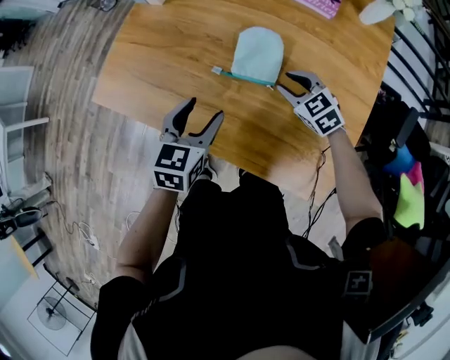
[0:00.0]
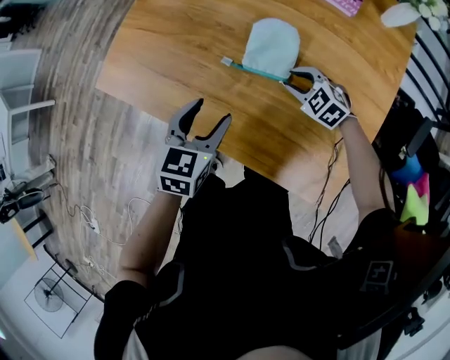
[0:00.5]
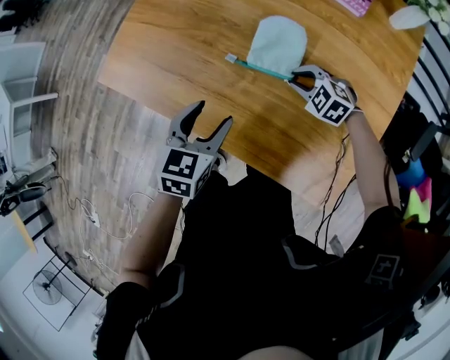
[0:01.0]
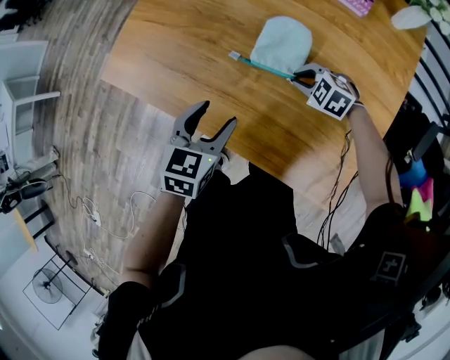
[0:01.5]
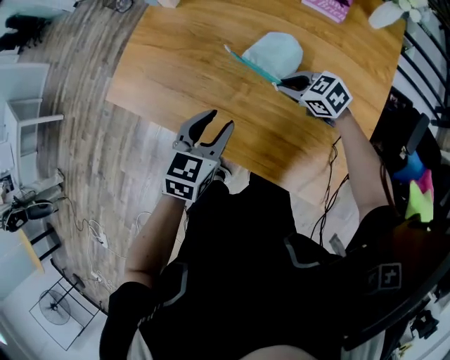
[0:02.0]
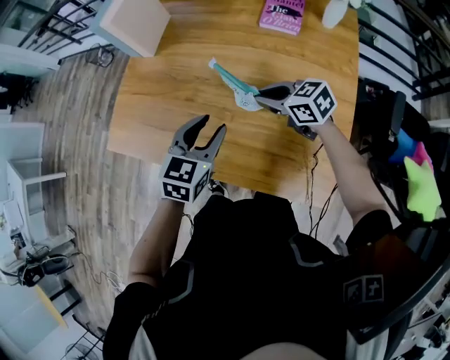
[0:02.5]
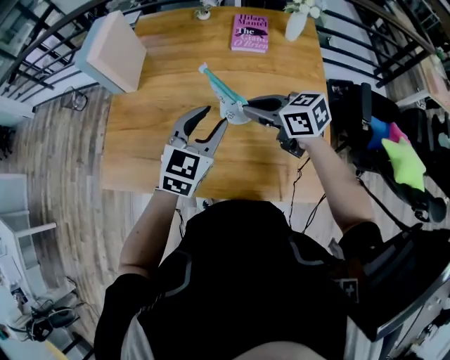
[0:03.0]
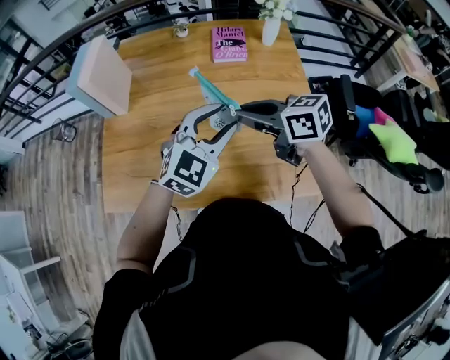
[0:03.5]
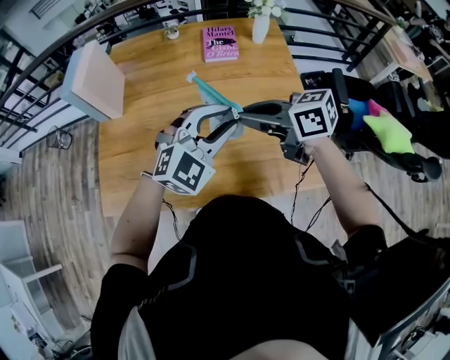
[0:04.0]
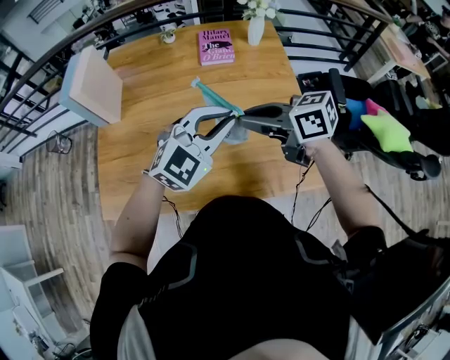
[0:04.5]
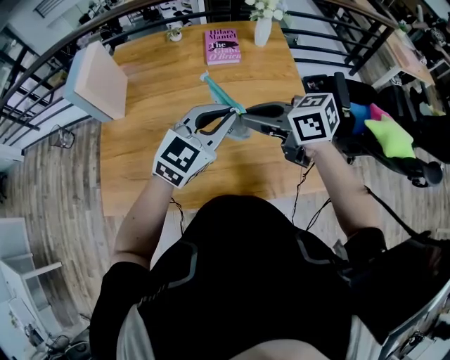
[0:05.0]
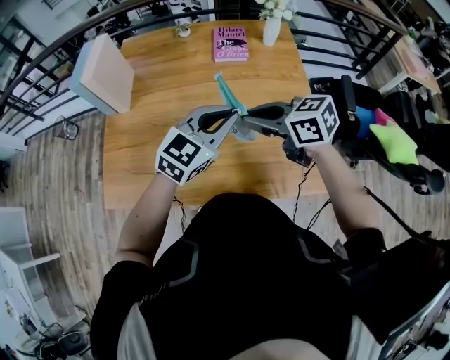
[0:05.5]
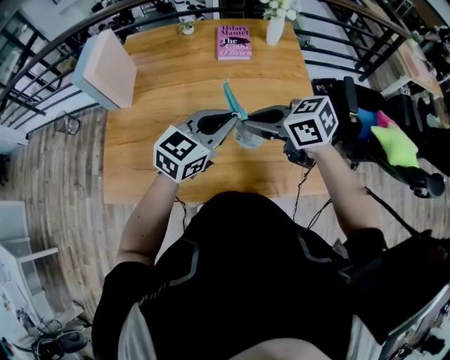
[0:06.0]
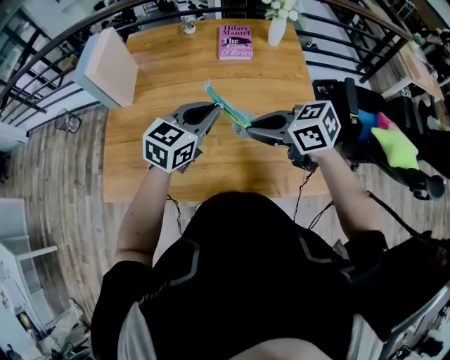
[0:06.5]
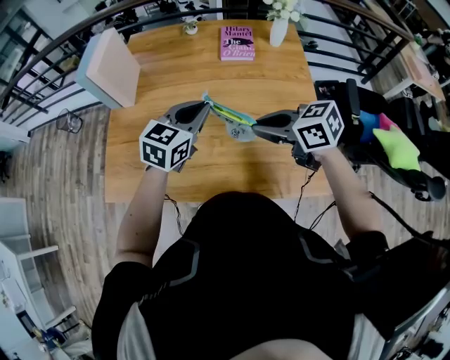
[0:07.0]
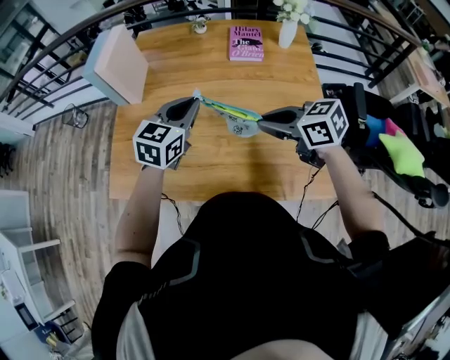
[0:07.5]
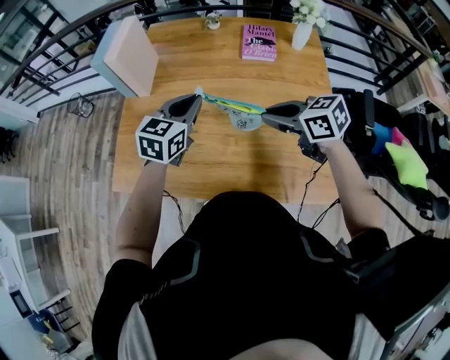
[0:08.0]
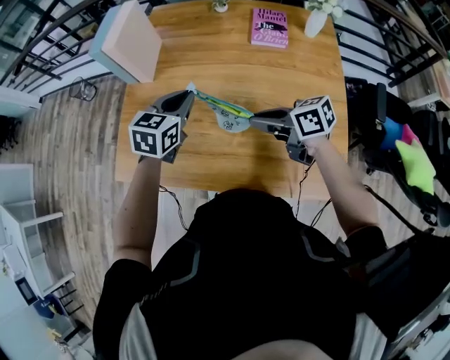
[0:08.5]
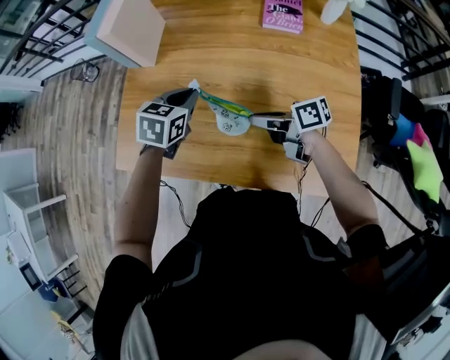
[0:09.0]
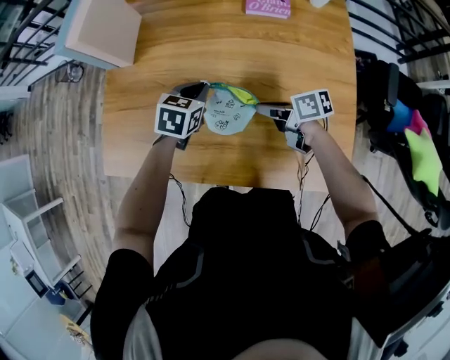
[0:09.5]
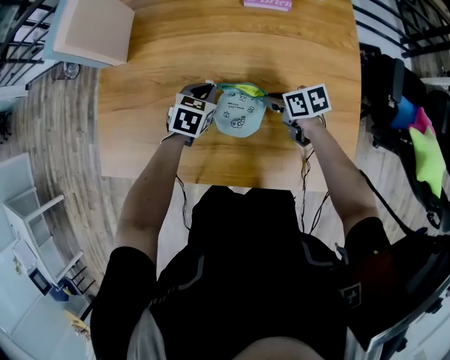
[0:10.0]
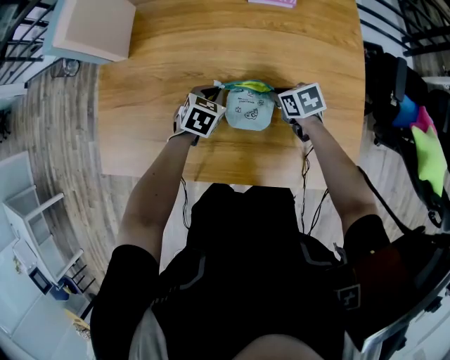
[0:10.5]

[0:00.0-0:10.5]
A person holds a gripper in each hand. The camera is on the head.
0:00.0 to 0:02.0: The right gripper turns by roughly 20 degrees, while the left gripper closes.
0:02.0 to 0:04.0: The right gripper goes about 25 cm upward, and swivels roughly 40 degrees, while the left gripper moves upward, roughly 15 cm, and swivels about 80 degrees.
0:04.0 to 0:06.5: The left gripper goes about 5 cm forward, and twists roughly 40 degrees counterclockwise, seen from behind.
0:06.5 to 0:08.5: The right gripper shifts some 10 cm downward and forward, while the left gripper is displaced to the left and forward by some 15 cm, and changes its angle by about 30 degrees.
0:08.5 to 0:10.5: The right gripper goes approximately 25 cm downward and to the right, and tips its fingers downward by approximately 30 degrees. The left gripper heads downward, covering about 25 cm, and rotates approximately 30 degrees.

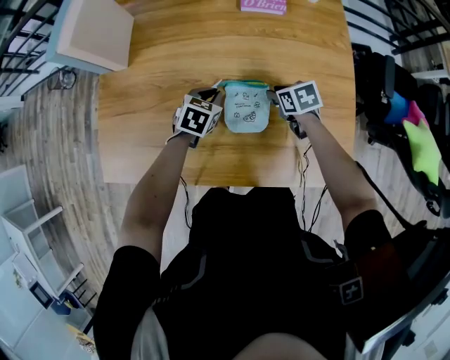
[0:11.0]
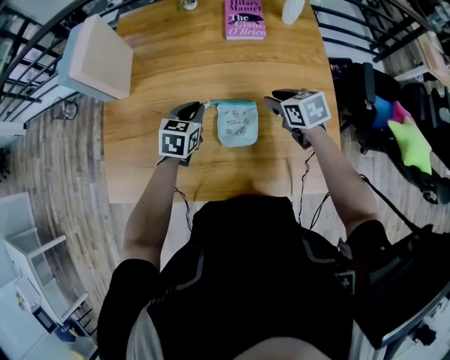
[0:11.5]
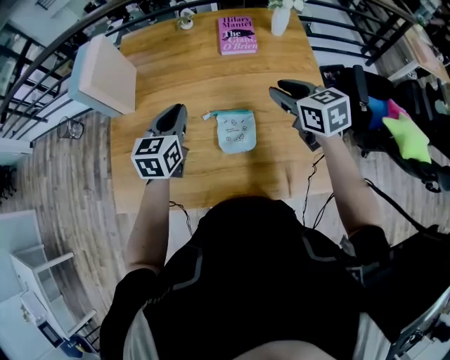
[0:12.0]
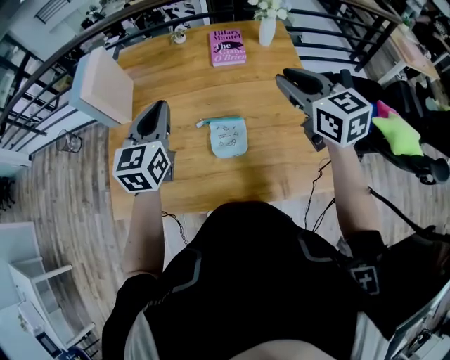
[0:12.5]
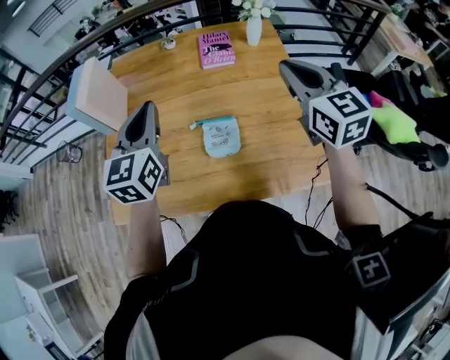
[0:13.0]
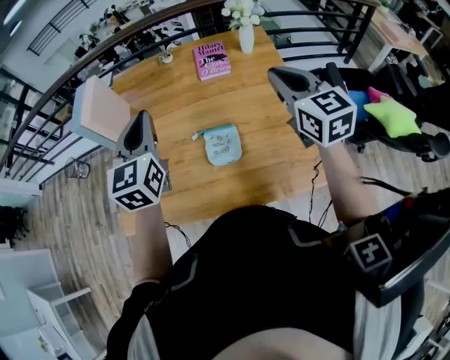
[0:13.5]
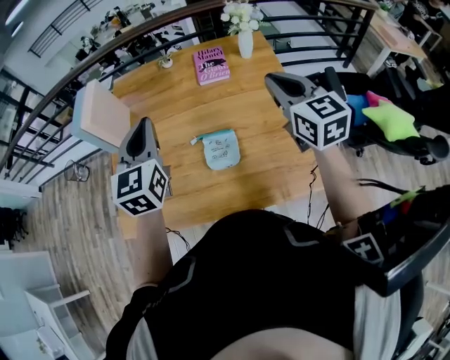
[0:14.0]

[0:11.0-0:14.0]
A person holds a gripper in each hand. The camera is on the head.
0:11.0 to 0:12.5: Both grippers travel together upward, about 35 cm. The left gripper tips its fingers upward by some 40 degrees; the right gripper points its fingers some 40 degrees further upward.
0:12.5 to 0:14.0: The left gripper moves upward, approximately 5 cm.

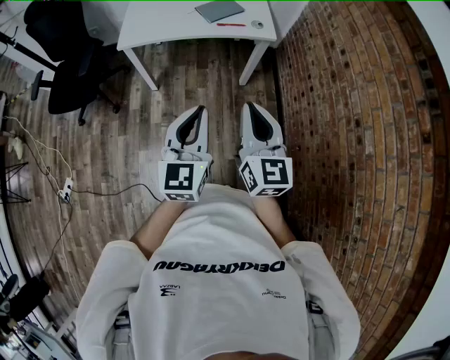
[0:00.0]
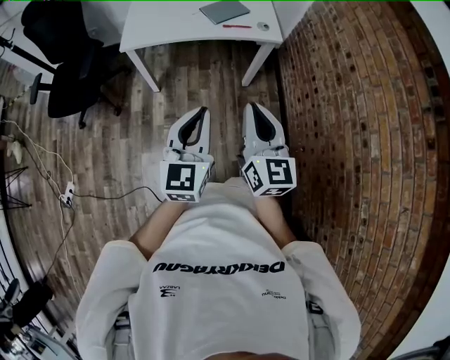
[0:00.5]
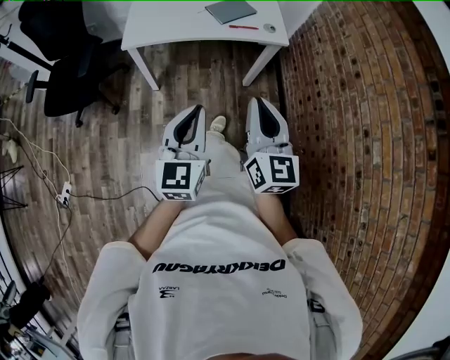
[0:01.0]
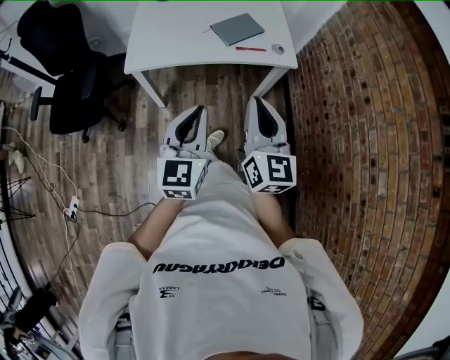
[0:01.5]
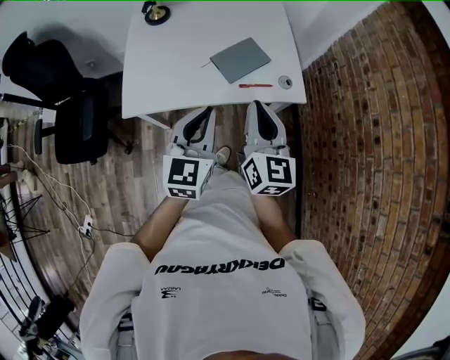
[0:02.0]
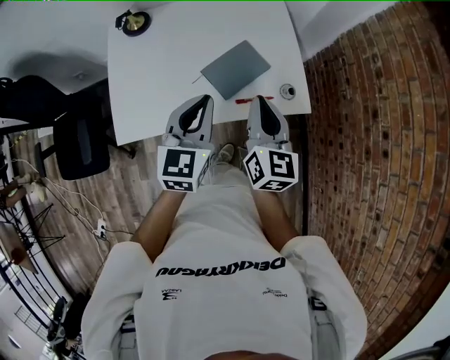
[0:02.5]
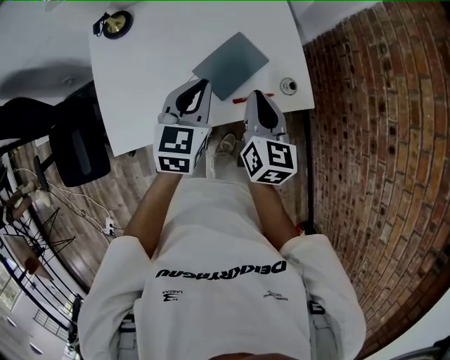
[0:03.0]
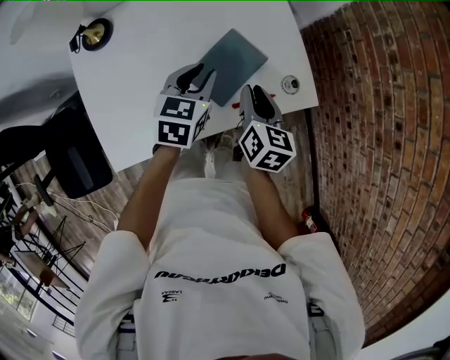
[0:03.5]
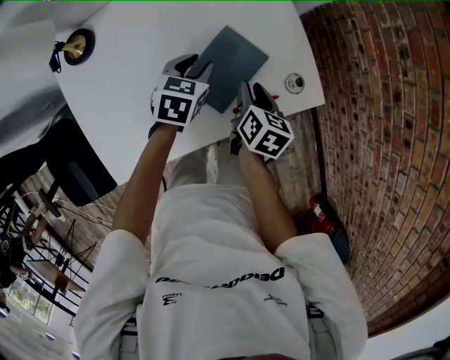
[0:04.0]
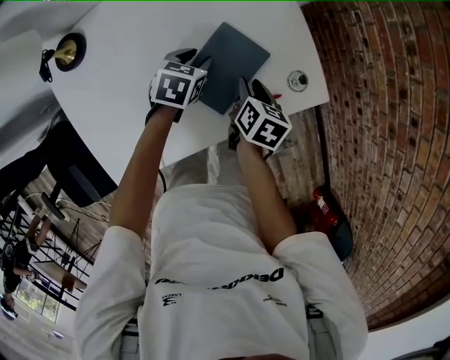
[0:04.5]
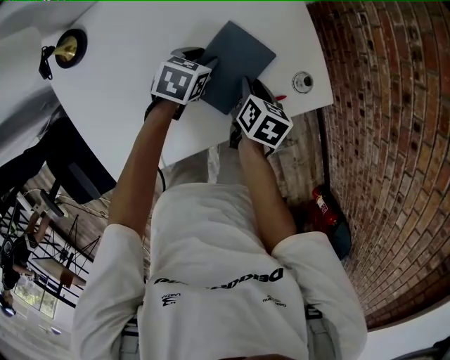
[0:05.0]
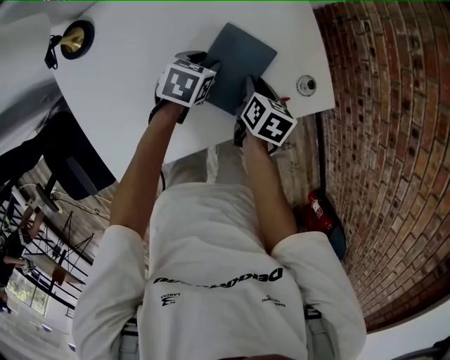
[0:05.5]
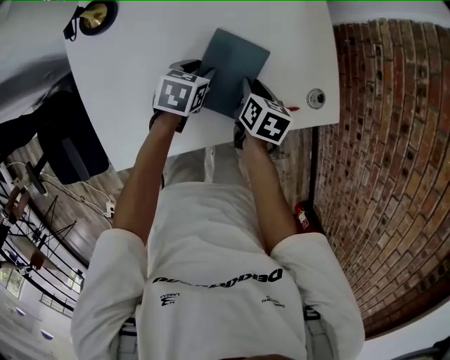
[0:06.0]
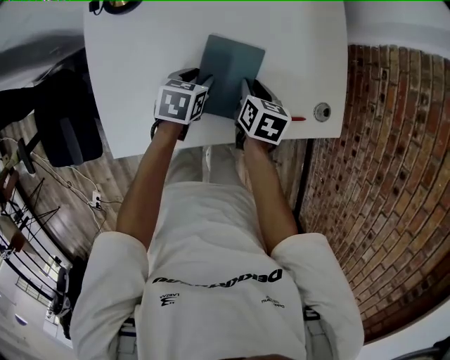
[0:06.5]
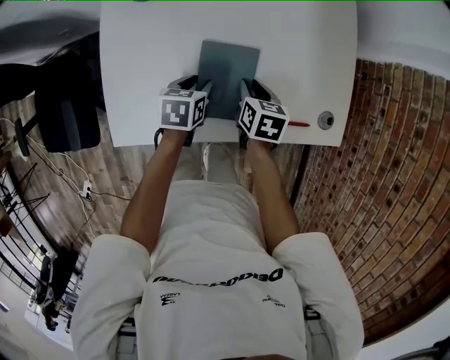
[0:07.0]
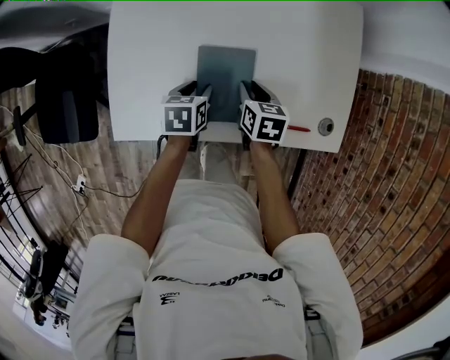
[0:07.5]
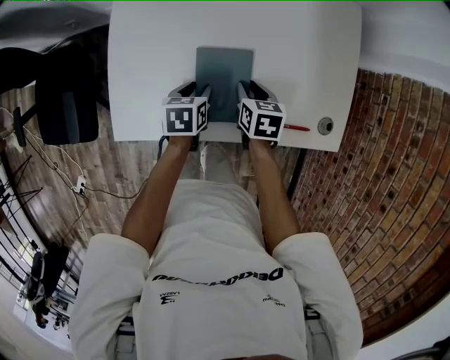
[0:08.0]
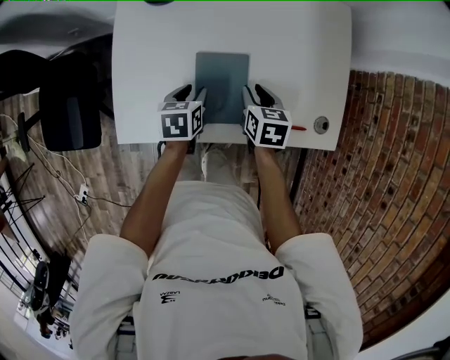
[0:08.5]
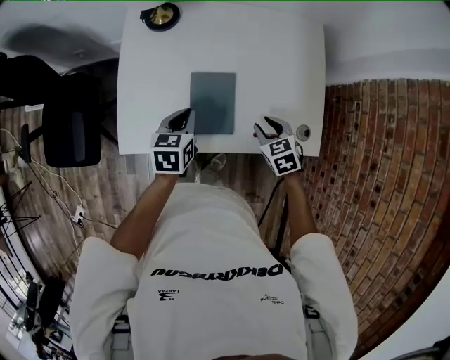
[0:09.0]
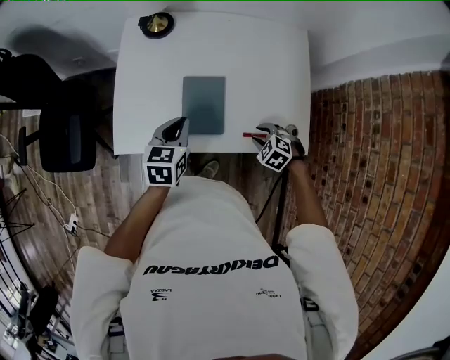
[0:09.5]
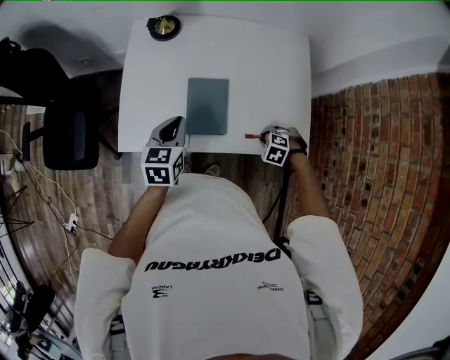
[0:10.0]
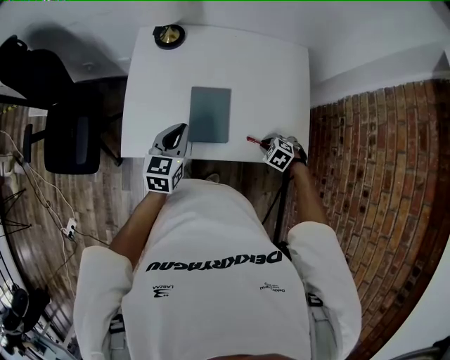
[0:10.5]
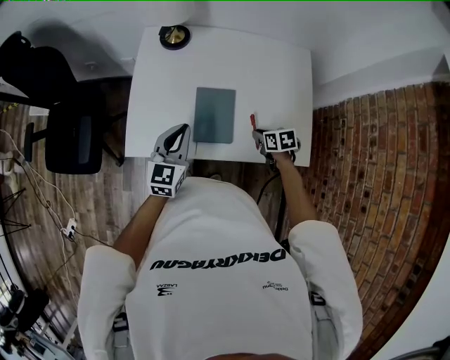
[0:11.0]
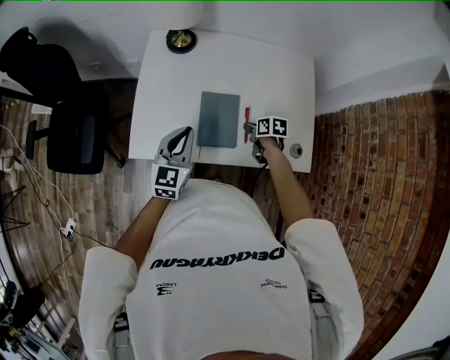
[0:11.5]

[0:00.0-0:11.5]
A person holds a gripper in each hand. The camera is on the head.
0:00.0 to 0:02.0: The two grippers travel together, forward, roughly 40 cm.
0:02.0 to 0:04.0: The right gripper moves downward and forward, roughly 40 cm, points its fingers about 40 degrees further downward, and opens its fingers. The left gripper shifts approximately 50 cm forward and downward, points its fingers some 40 degrees further downward, and opens.
0:04.0 to 0:06.0: The left gripper shifts approximately 10 cm downward, to the left and backward. Meanwhile the right gripper travels to the left and downward by roughly 10 cm.
0:06.0 to 0:07.5: The right gripper moves approximately 10 cm, and swivels approximately 30 degrees. The left gripper ends up approximately 15 cm from where it was, and turns by some 30 degrees.
0:07.5 to 0:09.5: The right gripper shifts roughly 15 cm backward and to the right, and rolls counterclockwise, seen from behind, by some 70 degrees. Meanwhile the left gripper is displaced upward and backward by about 20 cm, rotates approximately 20 degrees, and closes.
0:09.5 to 0:11.5: The left gripper ends up approximately 5 cm from where it was, and turns by approximately 20 degrees. The right gripper ends up some 10 cm from where it was, twists approximately 70 degrees clockwise, seen from behind, and closes.

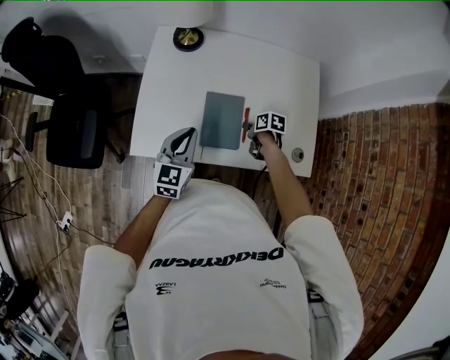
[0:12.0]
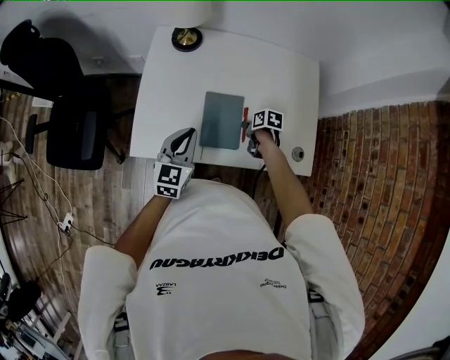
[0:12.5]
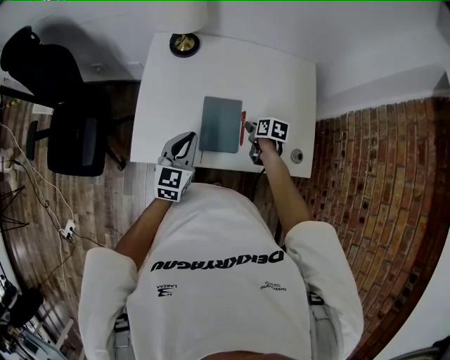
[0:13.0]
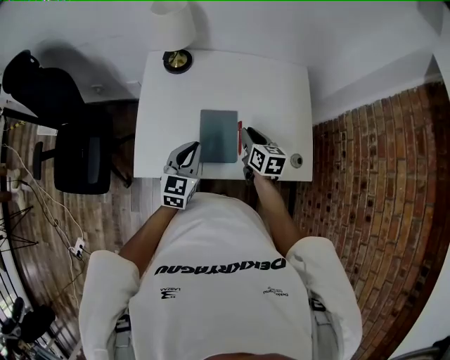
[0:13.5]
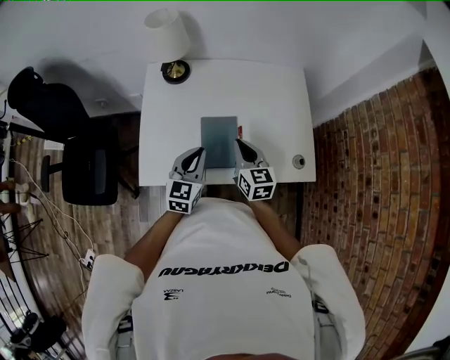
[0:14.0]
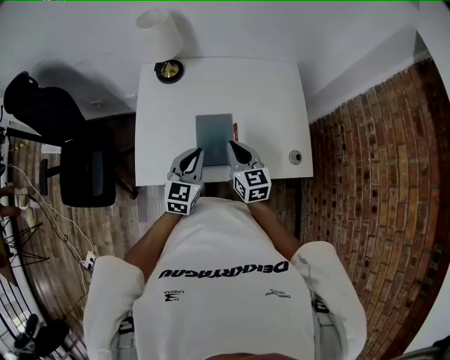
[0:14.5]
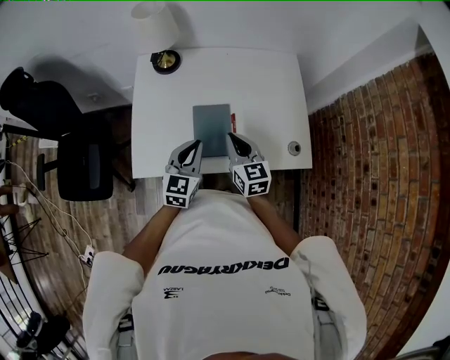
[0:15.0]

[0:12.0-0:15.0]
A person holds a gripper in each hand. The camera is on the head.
0:12.0 to 0:13.5: The right gripper moves upward, some 15 cm, and changes its angle by some 40 degrees.
0:13.5 to 0:15.0: The right gripper shifts roughly 10 cm backward and upward, and swivels approximately 20 degrees.
